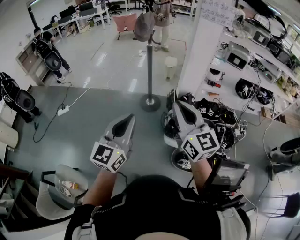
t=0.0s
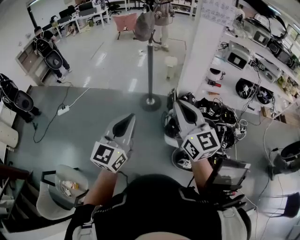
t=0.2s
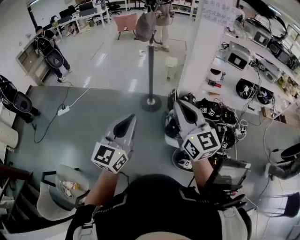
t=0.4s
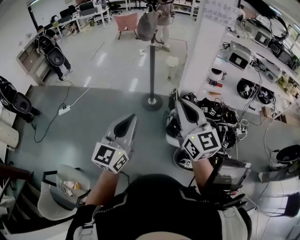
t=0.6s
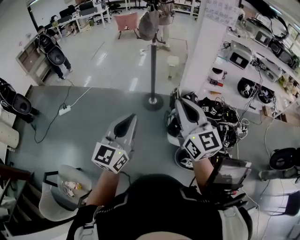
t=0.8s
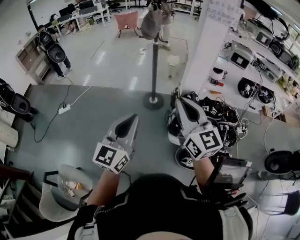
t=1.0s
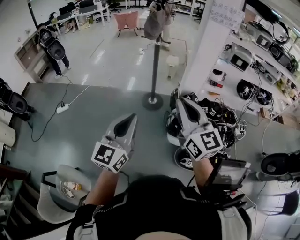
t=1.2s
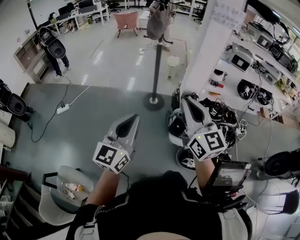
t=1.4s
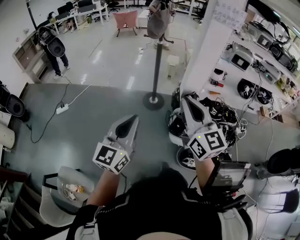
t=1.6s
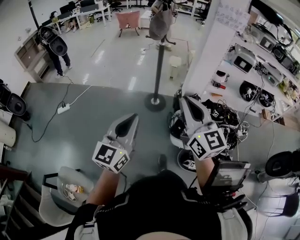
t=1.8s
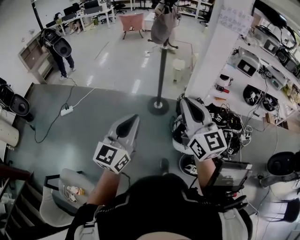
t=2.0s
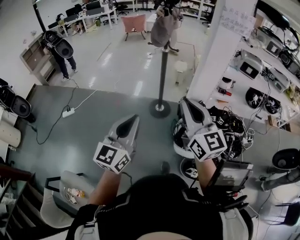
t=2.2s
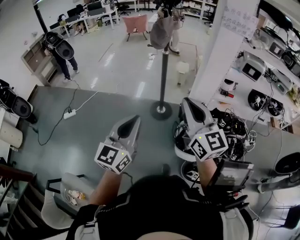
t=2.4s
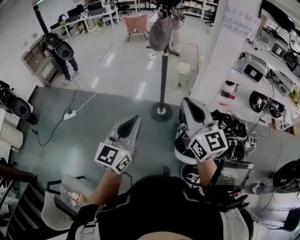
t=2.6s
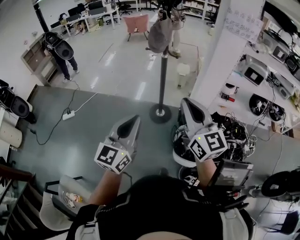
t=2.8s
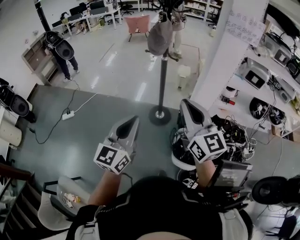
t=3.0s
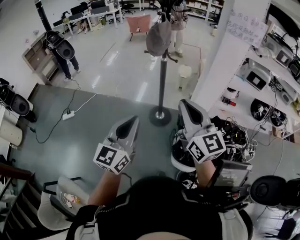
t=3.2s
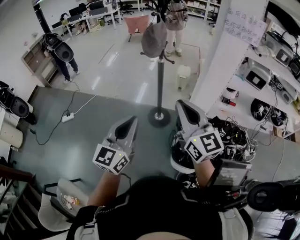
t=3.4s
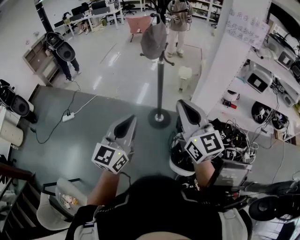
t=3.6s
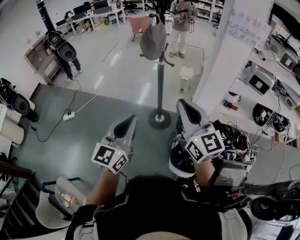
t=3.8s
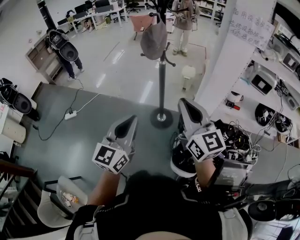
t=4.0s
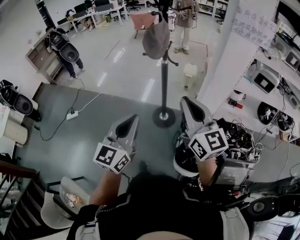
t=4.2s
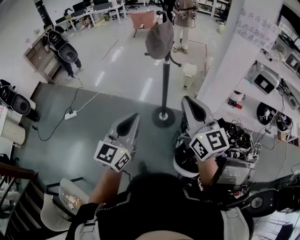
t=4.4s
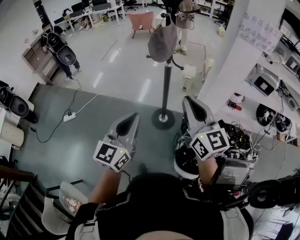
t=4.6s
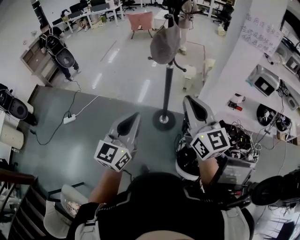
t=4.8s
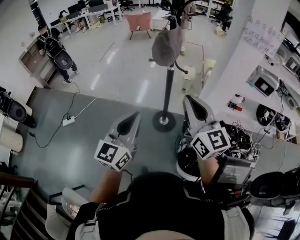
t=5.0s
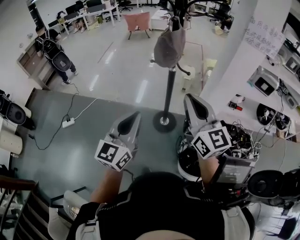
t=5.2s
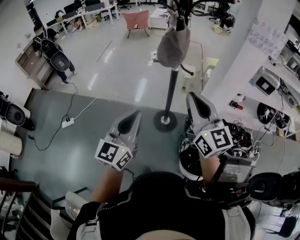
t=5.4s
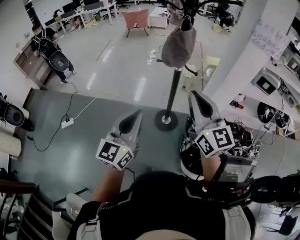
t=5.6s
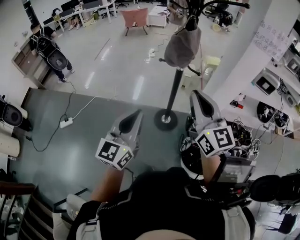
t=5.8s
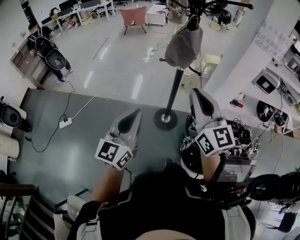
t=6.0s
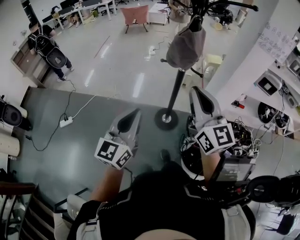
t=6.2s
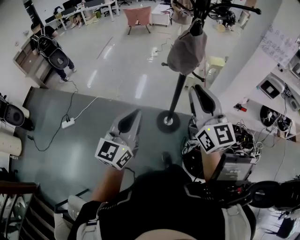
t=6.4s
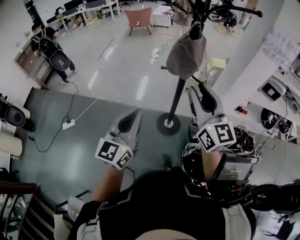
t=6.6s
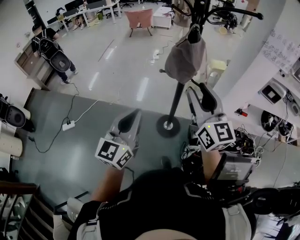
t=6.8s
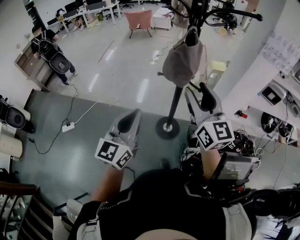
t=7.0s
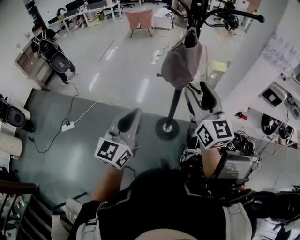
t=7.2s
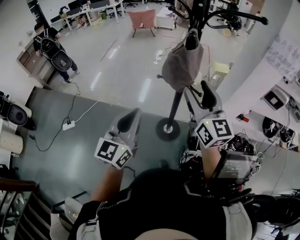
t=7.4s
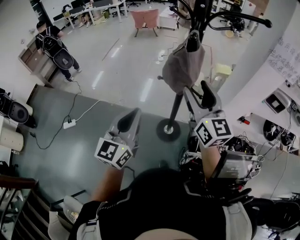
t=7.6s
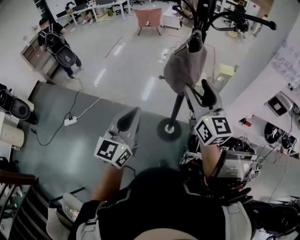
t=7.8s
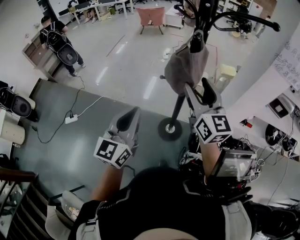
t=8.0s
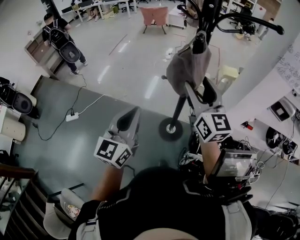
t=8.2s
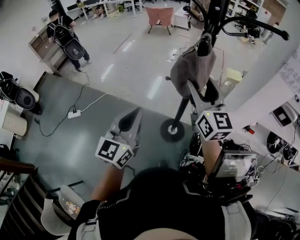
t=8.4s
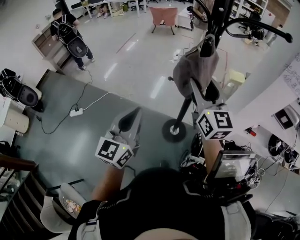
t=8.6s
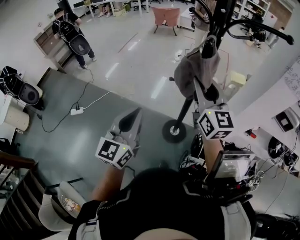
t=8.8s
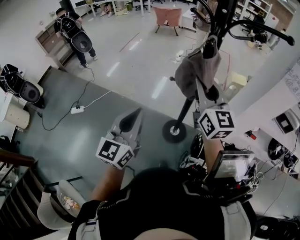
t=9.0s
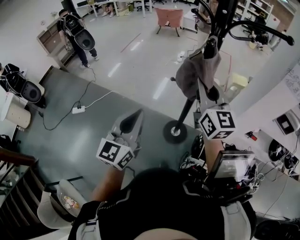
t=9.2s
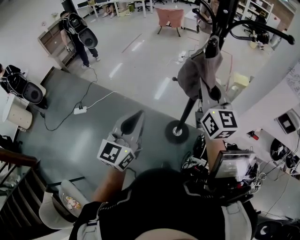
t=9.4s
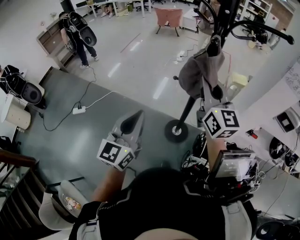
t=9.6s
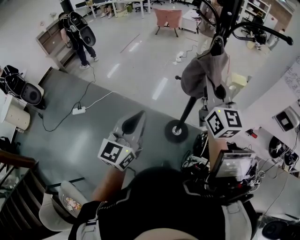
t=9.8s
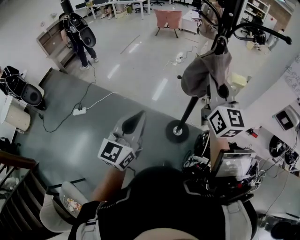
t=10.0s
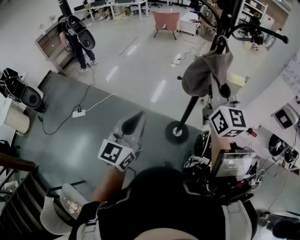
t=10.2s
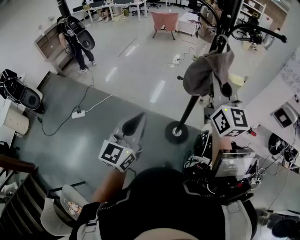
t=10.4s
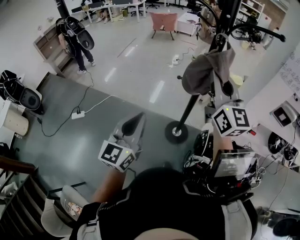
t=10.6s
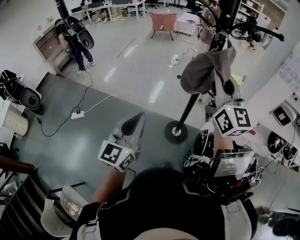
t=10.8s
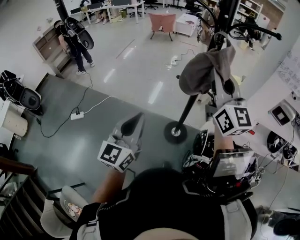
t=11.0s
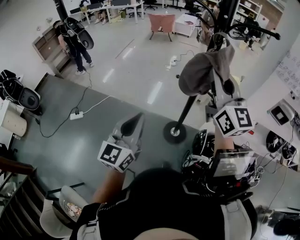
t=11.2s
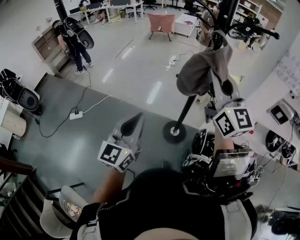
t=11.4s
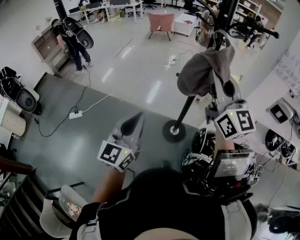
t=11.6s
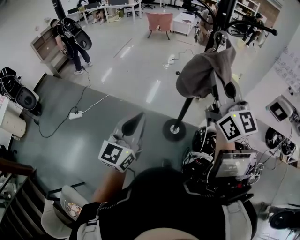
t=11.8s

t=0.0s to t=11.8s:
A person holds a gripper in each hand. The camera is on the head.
t=0.0s to t=1.4s: Both grippers travel together to the left, roughly 10 cm.
t=1.4s to t=3.0s: Both grippers move forward, roughly 20 cm.
t=3.0s to t=4.4s: The two grippers go some 10 cm forward.
t=4.4s to t=6.0s: Both grippers move to the left and forward, about 15 cm.
t=6.0s to t=7.4s: The two grippers go roughly 15 cm forward. The right gripper opens up.
t=7.4s to t=8.8s: The right gripper moves forward, some 5 cm, and closes up.
t=8.8s to t=10.4s: The right gripper goes approximately 10 cm upward and backward, and closes up, while the left gripper shifts some 5 cm backward.
t=10.4s to t=11.8s: The right gripper heads backward, covering about 10 cm.

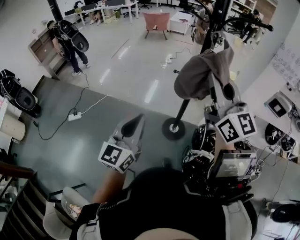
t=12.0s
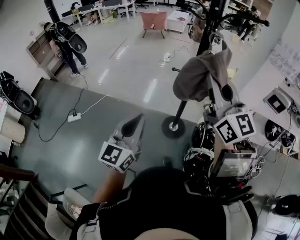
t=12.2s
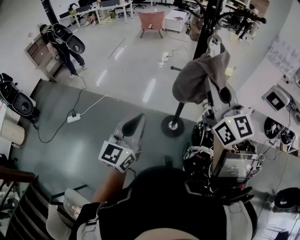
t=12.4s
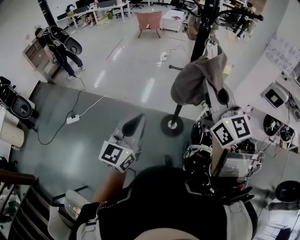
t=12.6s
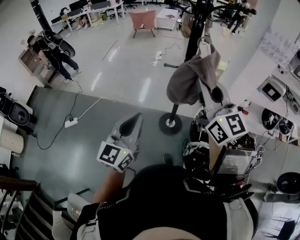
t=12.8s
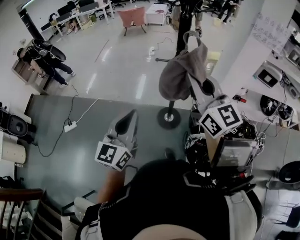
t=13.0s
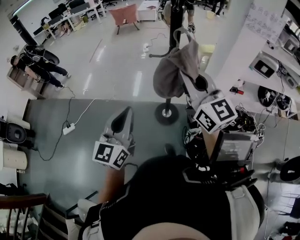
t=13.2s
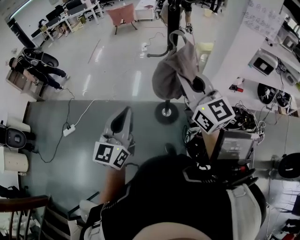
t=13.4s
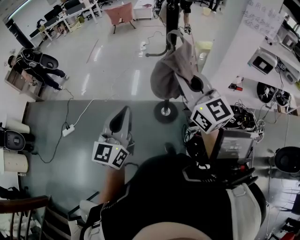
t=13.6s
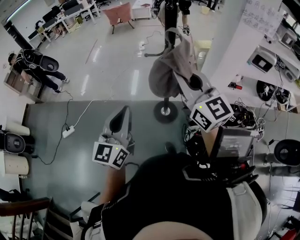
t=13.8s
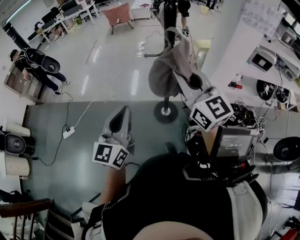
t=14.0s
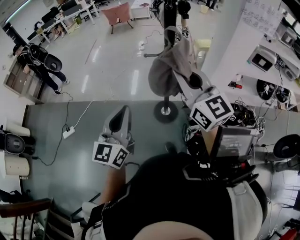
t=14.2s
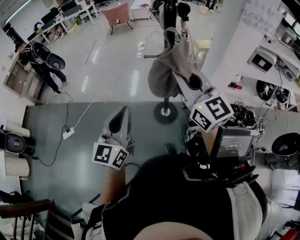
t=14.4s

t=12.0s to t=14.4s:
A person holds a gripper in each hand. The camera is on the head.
t=12.0s to t=13.2s: The right gripper goes about 5 cm downward.
t=13.2s to t=14.4s: There are only small adjustments of the grippers.

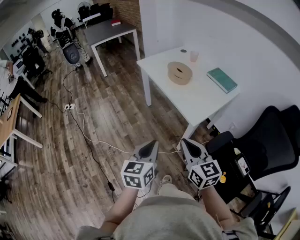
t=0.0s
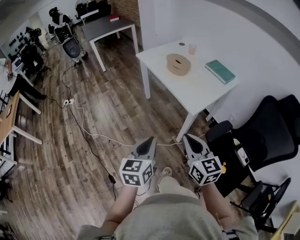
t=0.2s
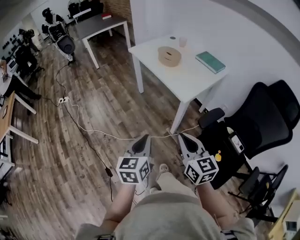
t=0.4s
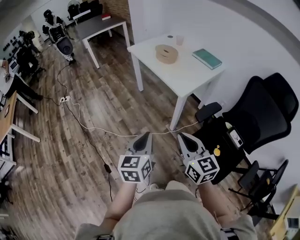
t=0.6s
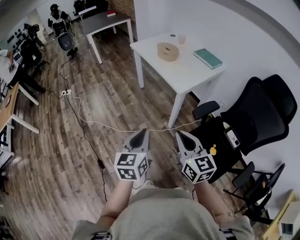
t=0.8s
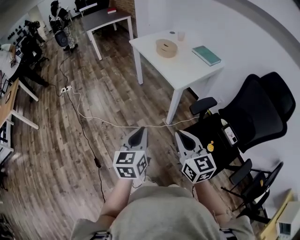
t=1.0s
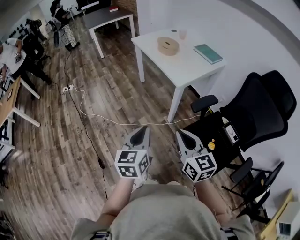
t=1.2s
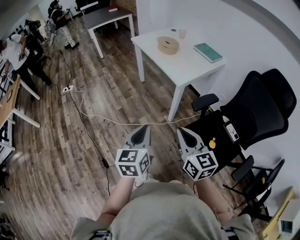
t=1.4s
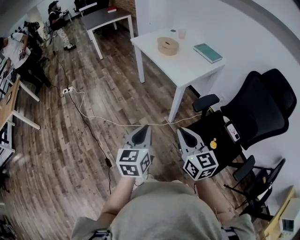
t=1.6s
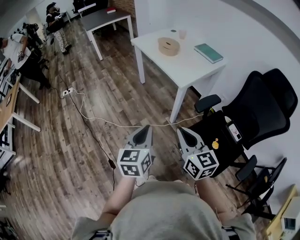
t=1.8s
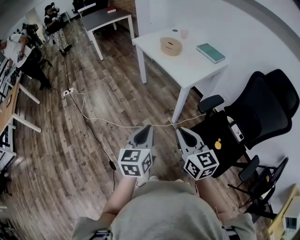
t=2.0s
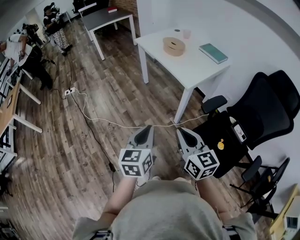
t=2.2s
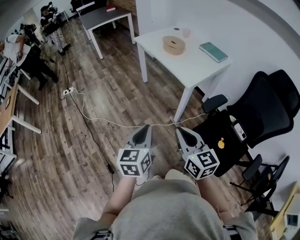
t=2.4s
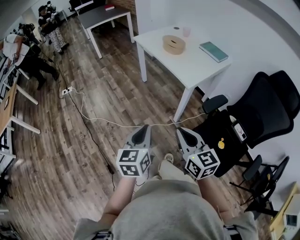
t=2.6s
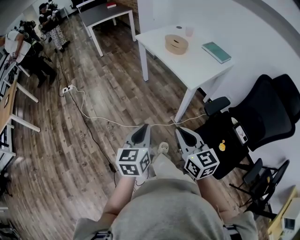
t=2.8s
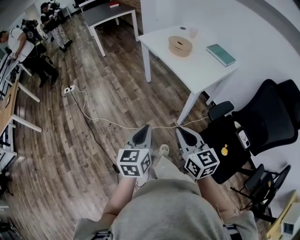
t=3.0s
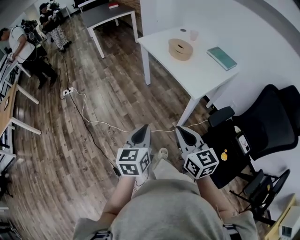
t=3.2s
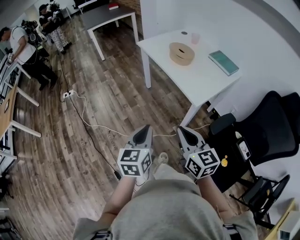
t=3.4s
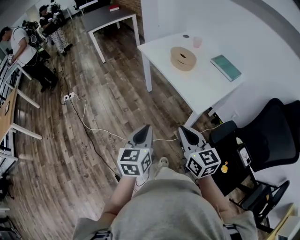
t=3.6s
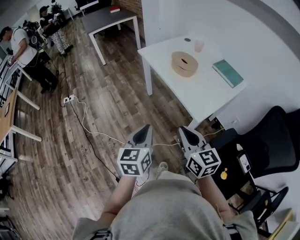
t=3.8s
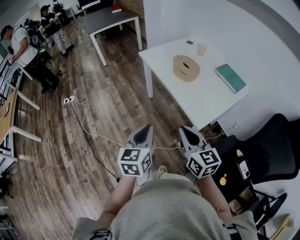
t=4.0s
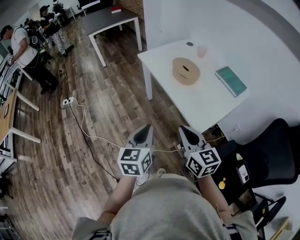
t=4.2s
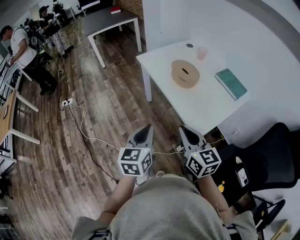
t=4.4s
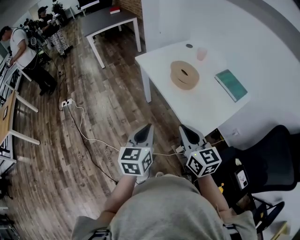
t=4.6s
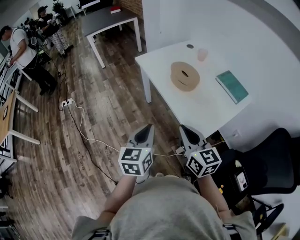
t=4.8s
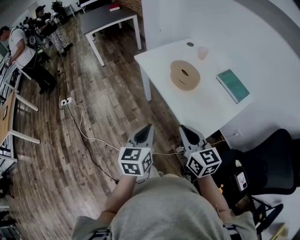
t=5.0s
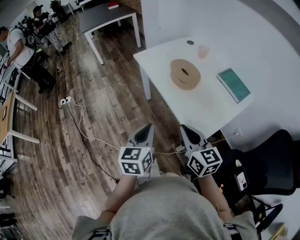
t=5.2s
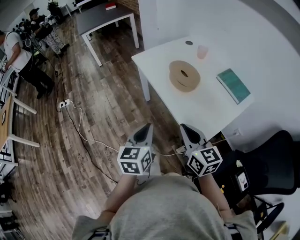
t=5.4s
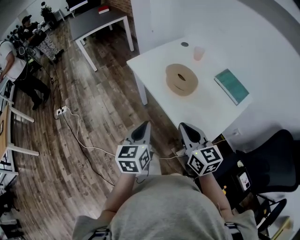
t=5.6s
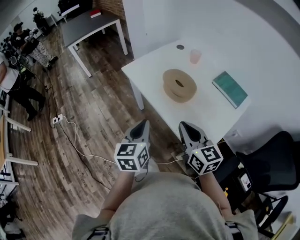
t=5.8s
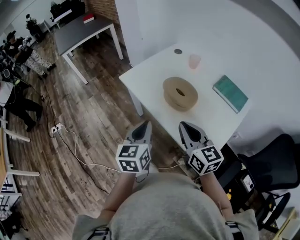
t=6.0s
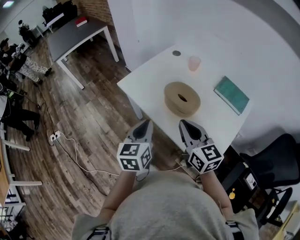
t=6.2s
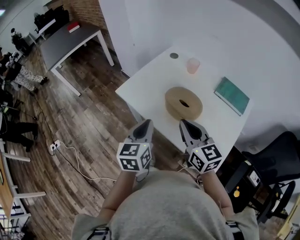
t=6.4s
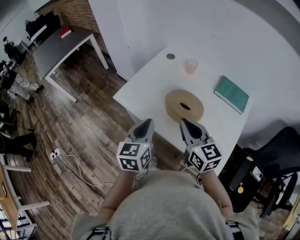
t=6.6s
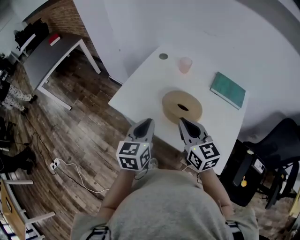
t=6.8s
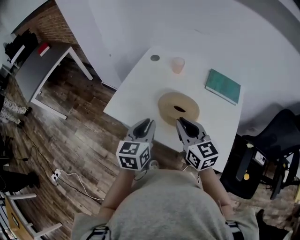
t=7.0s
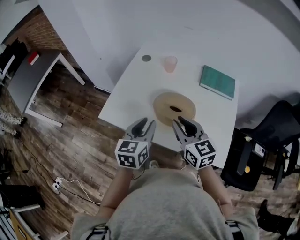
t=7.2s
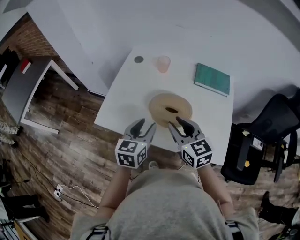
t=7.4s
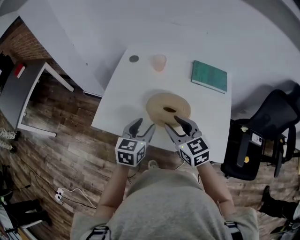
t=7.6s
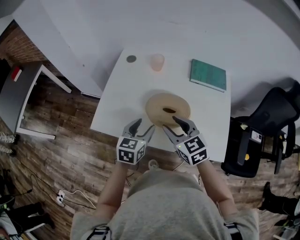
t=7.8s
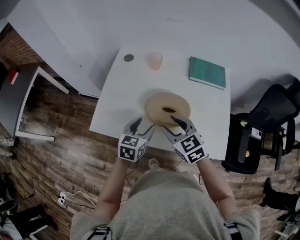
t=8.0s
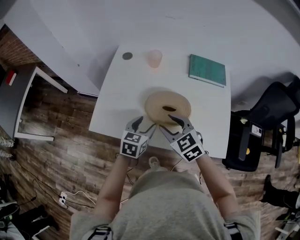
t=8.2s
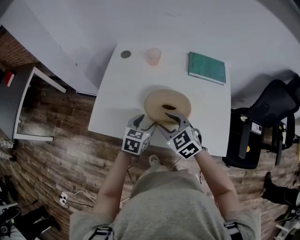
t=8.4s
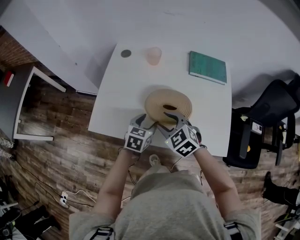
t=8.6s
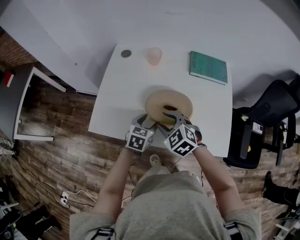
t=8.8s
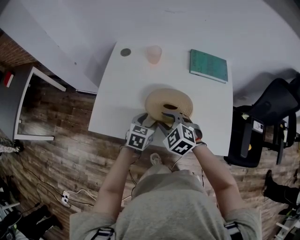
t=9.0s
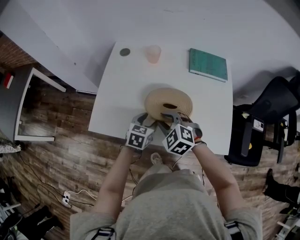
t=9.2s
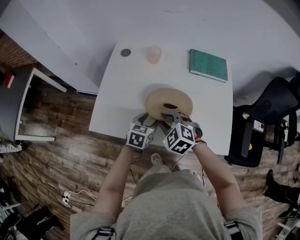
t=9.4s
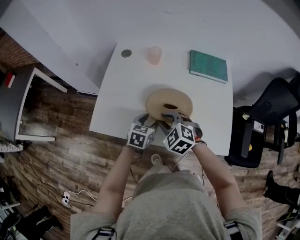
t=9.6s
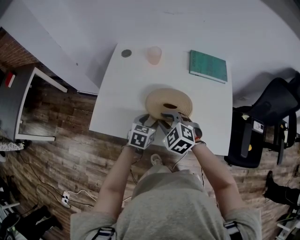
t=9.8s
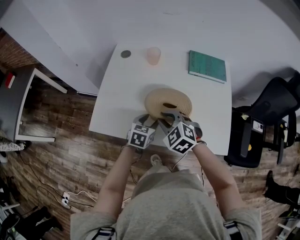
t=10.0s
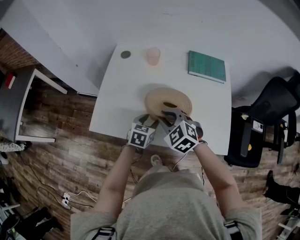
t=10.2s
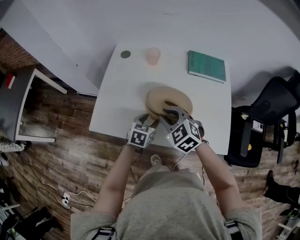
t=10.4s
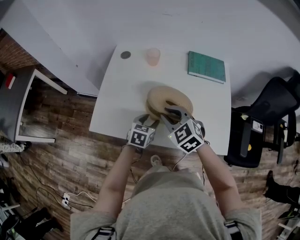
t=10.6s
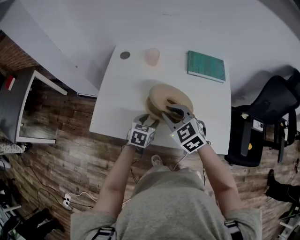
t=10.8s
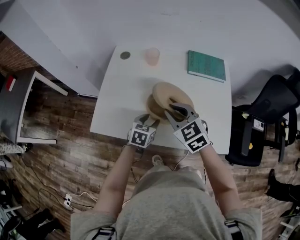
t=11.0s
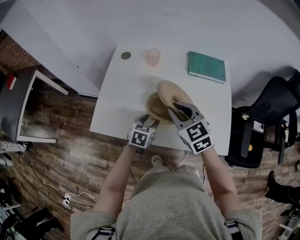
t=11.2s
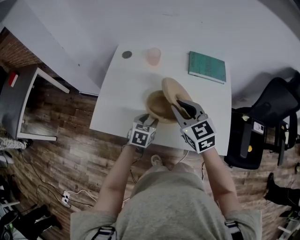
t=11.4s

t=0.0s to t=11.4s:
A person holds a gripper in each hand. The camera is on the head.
t=0.0s to t=1.4s: The grippers both shift backward by approximately 20 cm.
t=1.4s to t=2.8s: The left gripper moves forward and to the left, some 10 cm. Meanwhile the right gripper travels to the left and forward by about 10 cm.
t=2.8s to t=4.2s: Both grippers travel together forward, approximately 30 cm.
t=4.2s to t=5.6s: Both grippers move forward, some 15 cm.
t=5.6s to t=7.2s: The right gripper shifts by about 30 cm, changes its angle by about 30 degrees, and opens up, while the left gripper moves approximately 35 cm, swivels roughly 40 degrees, and opens.
t=7.2s to t=8.6s: The left gripper shifts approximately 15 cm downward and forward, rotates about 30 degrees, and opens; the right gripper moves downward, roughly 10 cm, turns by some 40 degrees, and opens.
t=8.6s to t=10.0s: The right gripper closes.
t=10.0s to t=11.4s: The right gripper goes about 10 cm upward and to the right, and turns by about 30 degrees.
